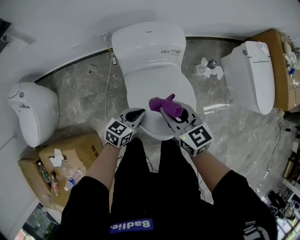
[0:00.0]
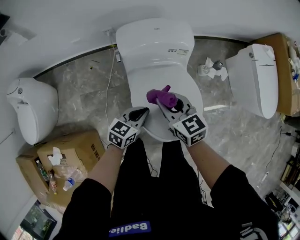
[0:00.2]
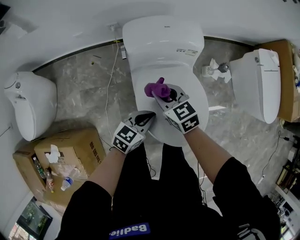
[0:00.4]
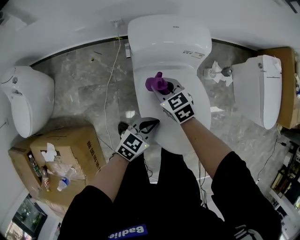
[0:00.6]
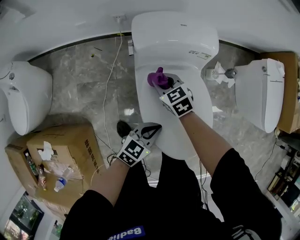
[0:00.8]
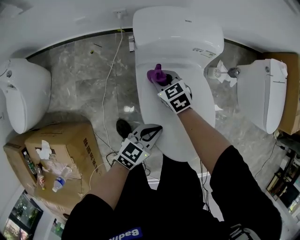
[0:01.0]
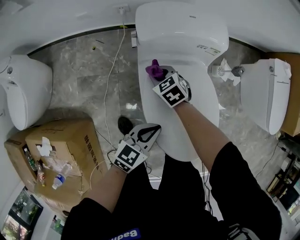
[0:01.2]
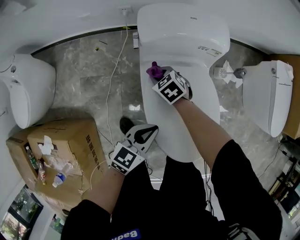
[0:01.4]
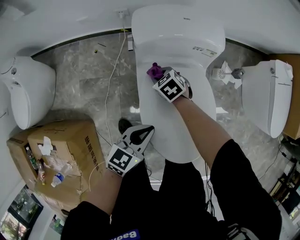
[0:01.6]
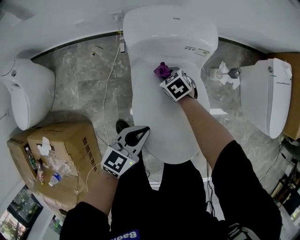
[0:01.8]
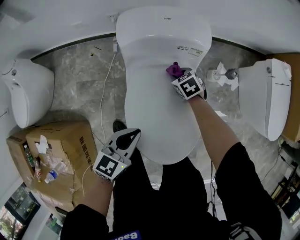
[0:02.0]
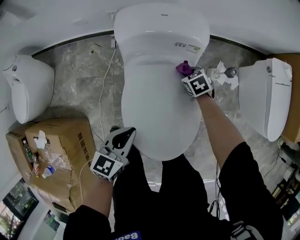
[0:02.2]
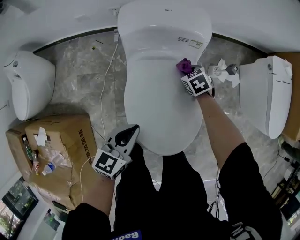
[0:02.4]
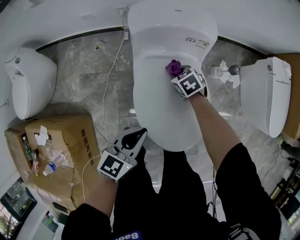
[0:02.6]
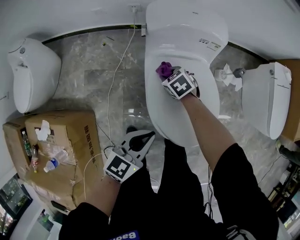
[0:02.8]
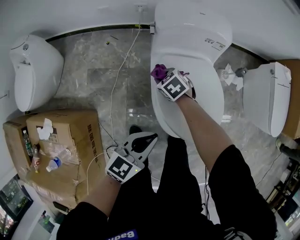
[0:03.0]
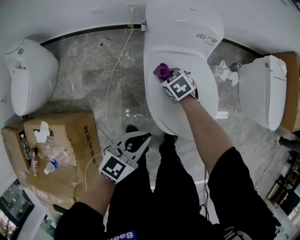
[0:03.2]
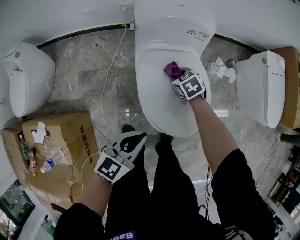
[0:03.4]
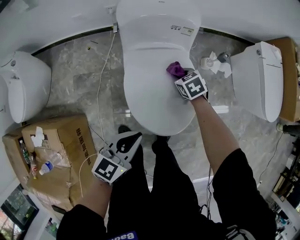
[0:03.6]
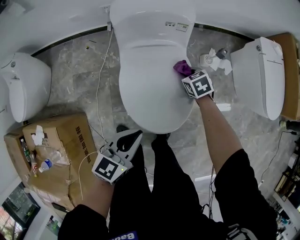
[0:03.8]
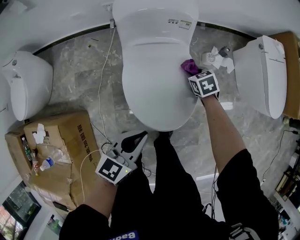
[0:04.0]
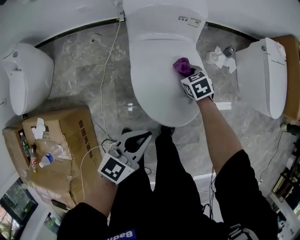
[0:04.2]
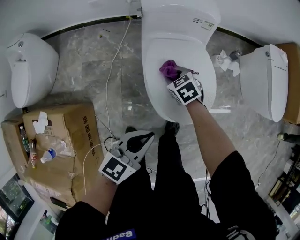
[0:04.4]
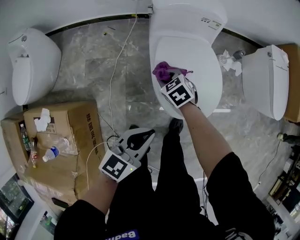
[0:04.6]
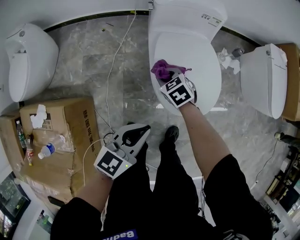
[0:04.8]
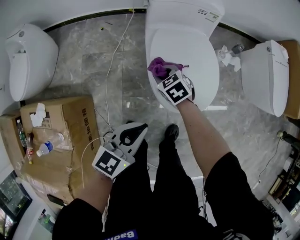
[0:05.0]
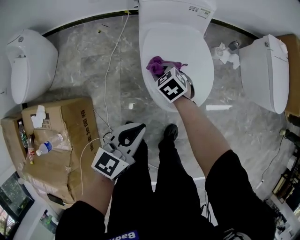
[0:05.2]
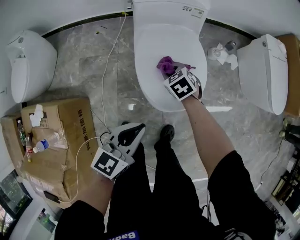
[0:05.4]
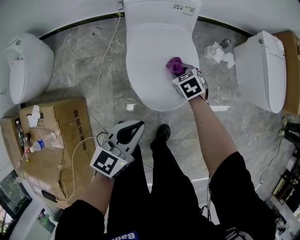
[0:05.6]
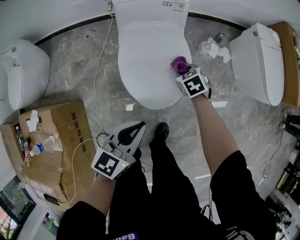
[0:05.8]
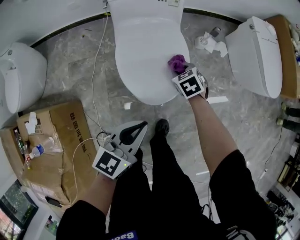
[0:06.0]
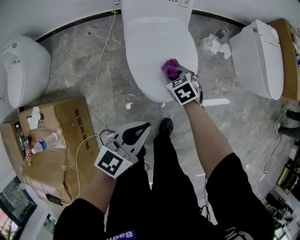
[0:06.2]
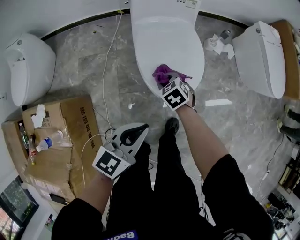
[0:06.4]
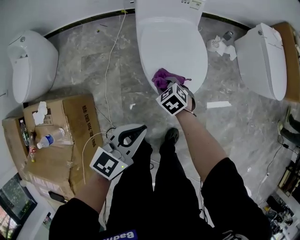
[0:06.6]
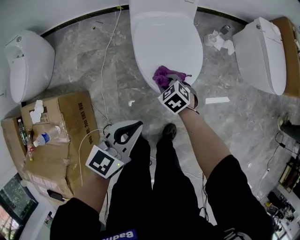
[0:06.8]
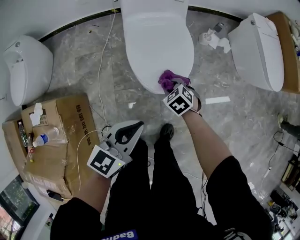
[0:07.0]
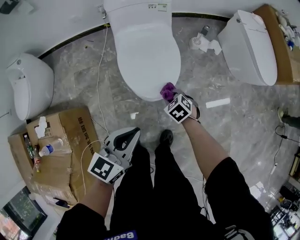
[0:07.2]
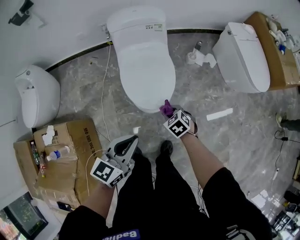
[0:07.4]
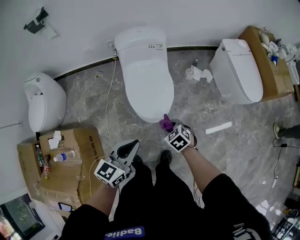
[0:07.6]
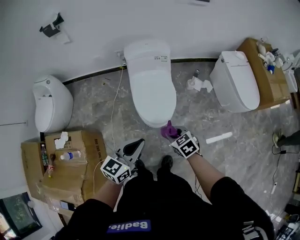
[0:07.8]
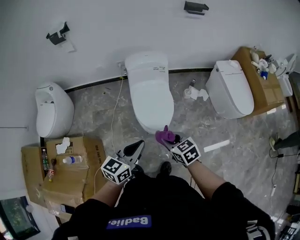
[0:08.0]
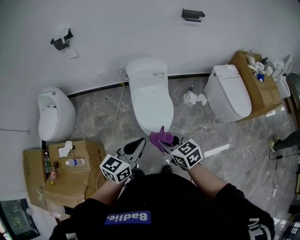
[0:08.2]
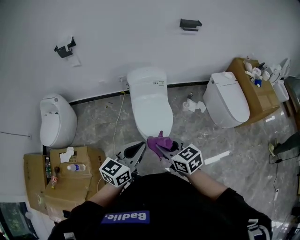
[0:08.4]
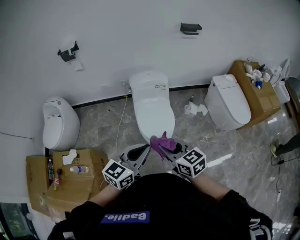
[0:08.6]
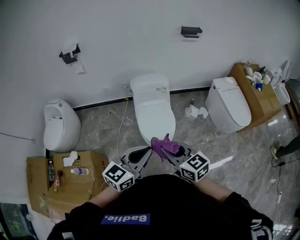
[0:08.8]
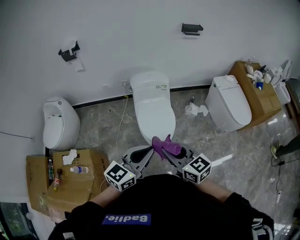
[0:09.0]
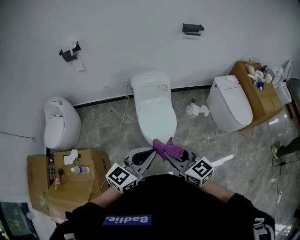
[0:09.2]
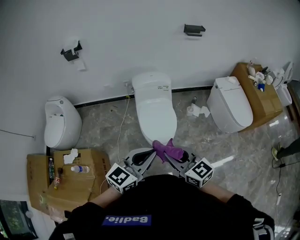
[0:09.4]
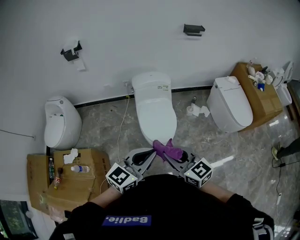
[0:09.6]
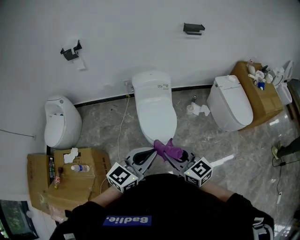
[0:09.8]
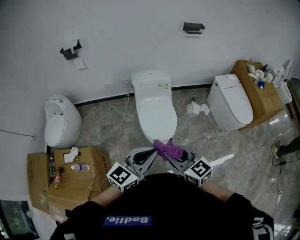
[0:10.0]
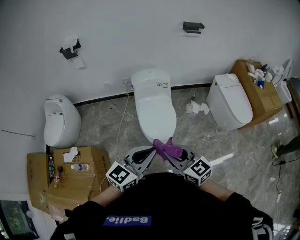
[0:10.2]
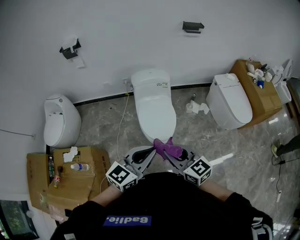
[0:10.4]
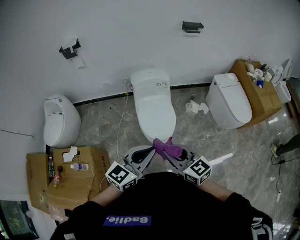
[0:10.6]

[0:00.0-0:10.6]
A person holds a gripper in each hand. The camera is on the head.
0:00.0 to 0:01.6: The right gripper goes approximately 35 cm downward, to the left and forward, and tilts its fingers some 30 degrees downward.
0:01.6 to 0:03.0: The right gripper travels backward by roughly 10 cm, and goes to the right and returns, some 20 cm each way, while the left gripper travels backward and upward by some 10 cm.
0:03.0 to 0:04.6: The grippers both shift backward by roughly 10 cm. The right gripper goes to the right and returns, approximately 30 cm each way. Meanwhile the left gripper travels to the right and back again, roughly 10 cm each way.
0:04.6 to 0:06.0: The right gripper moves to the right, roughly 25 cm. The left gripper is displaced to the right by some 15 cm.
0:06.0 to 0:07.6: The right gripper shifts roughly 25 cm backward and upward; the left gripper goes some 15 cm upward and backward.
0:07.6 to 0:09.0: The left gripper shifts about 20 cm upward, while the right gripper goes approximately 35 cm upward, and tilts its fingers some 50 degrees upward.
0:09.0 to 0:10.6: There are only small adjustments of the grippers.

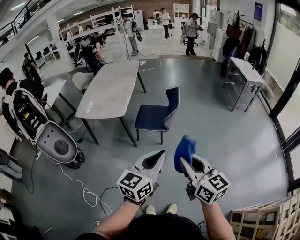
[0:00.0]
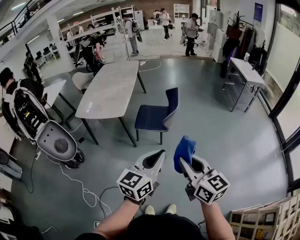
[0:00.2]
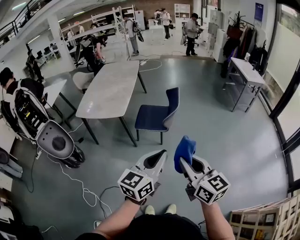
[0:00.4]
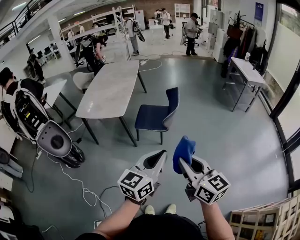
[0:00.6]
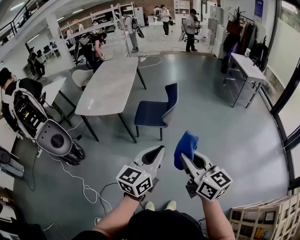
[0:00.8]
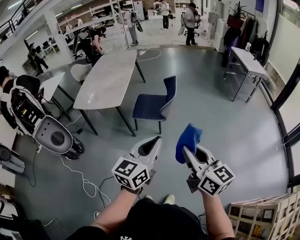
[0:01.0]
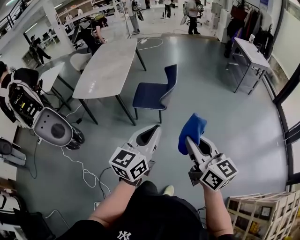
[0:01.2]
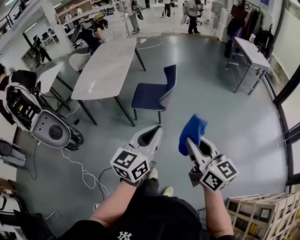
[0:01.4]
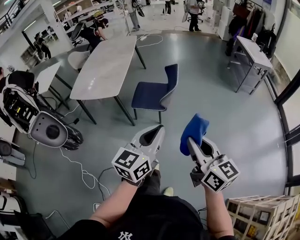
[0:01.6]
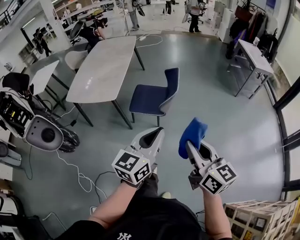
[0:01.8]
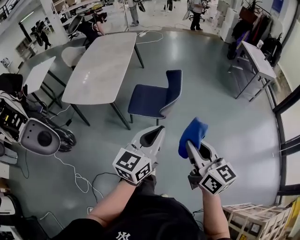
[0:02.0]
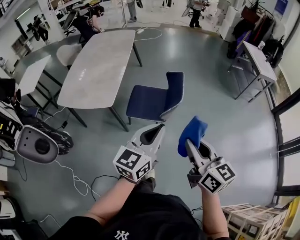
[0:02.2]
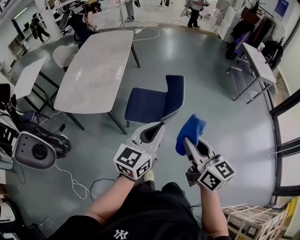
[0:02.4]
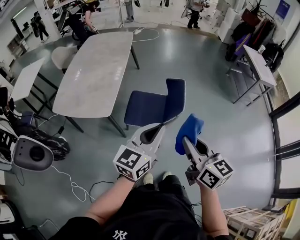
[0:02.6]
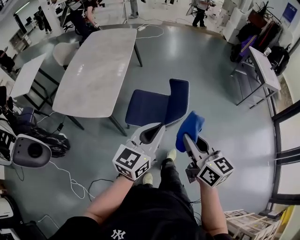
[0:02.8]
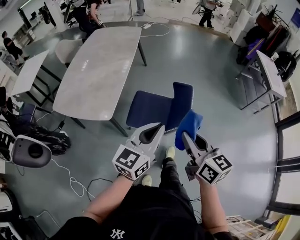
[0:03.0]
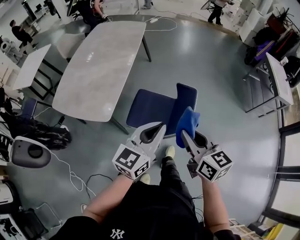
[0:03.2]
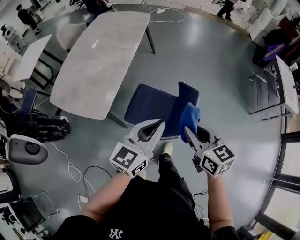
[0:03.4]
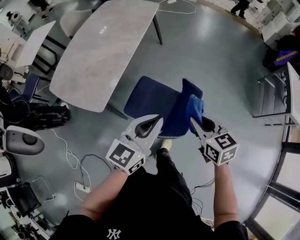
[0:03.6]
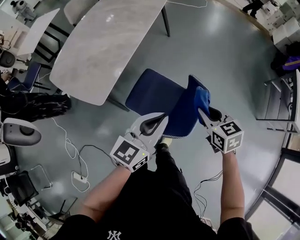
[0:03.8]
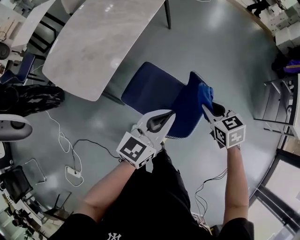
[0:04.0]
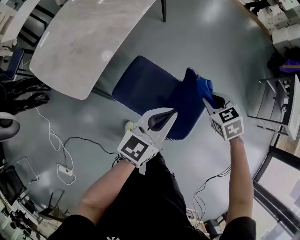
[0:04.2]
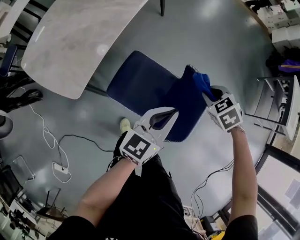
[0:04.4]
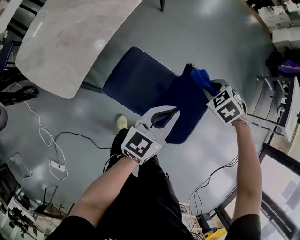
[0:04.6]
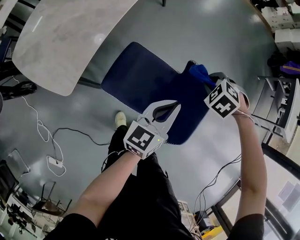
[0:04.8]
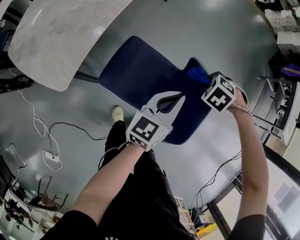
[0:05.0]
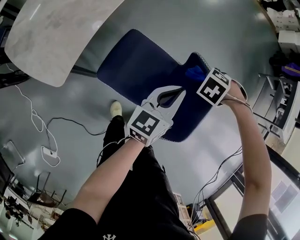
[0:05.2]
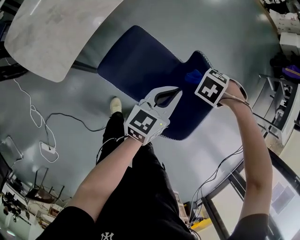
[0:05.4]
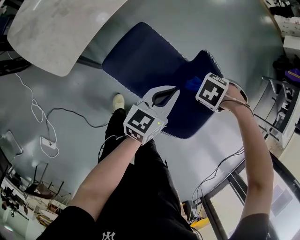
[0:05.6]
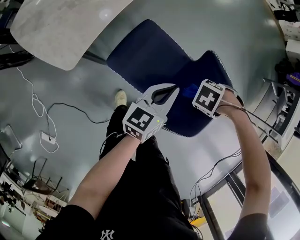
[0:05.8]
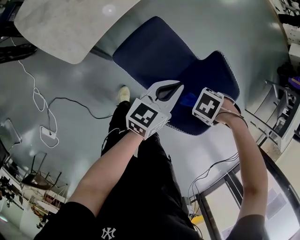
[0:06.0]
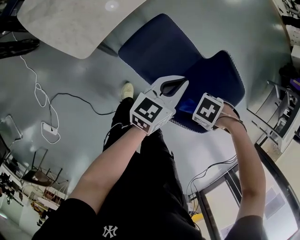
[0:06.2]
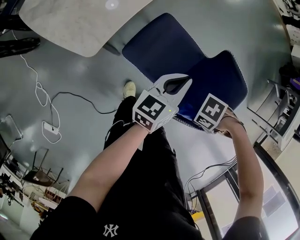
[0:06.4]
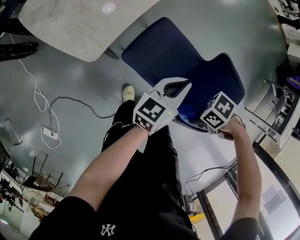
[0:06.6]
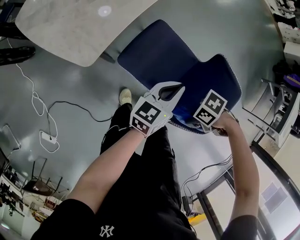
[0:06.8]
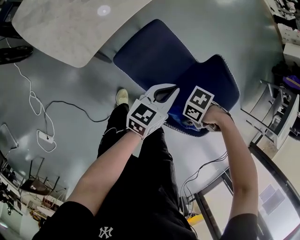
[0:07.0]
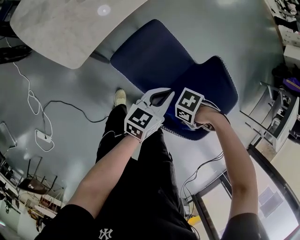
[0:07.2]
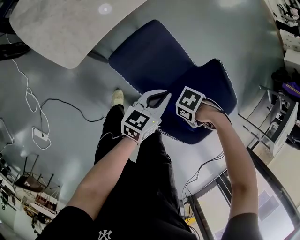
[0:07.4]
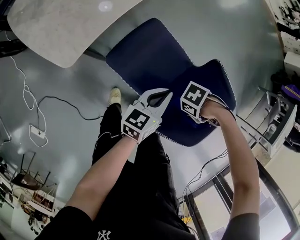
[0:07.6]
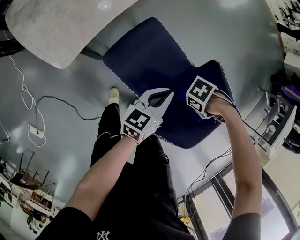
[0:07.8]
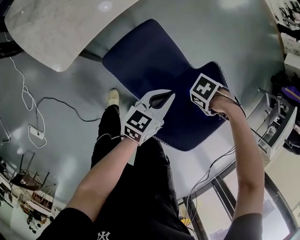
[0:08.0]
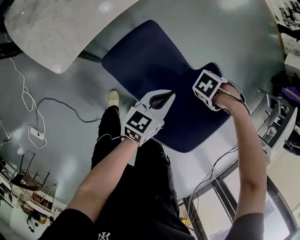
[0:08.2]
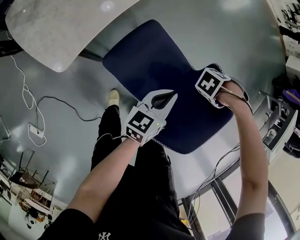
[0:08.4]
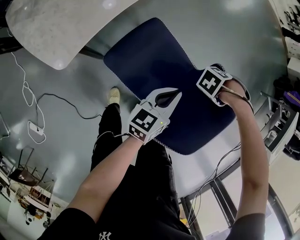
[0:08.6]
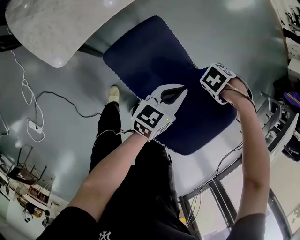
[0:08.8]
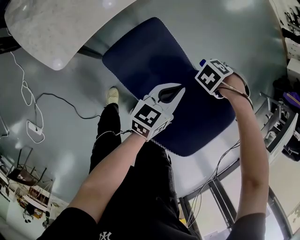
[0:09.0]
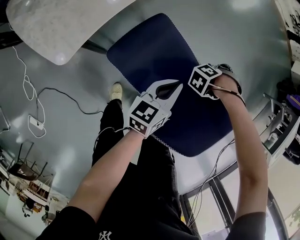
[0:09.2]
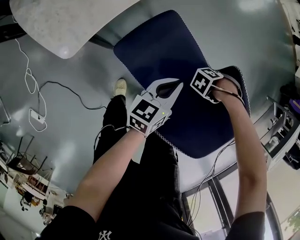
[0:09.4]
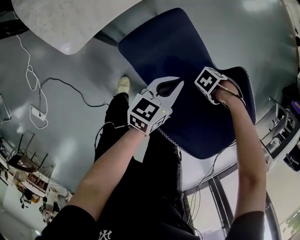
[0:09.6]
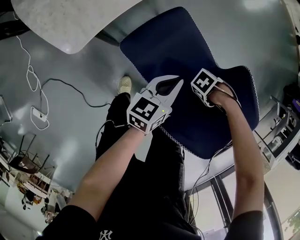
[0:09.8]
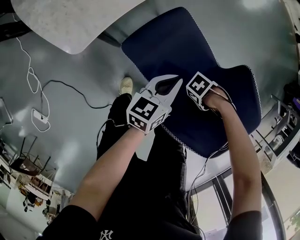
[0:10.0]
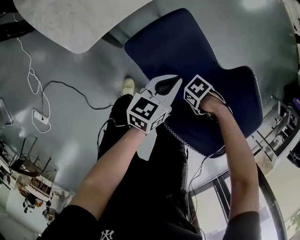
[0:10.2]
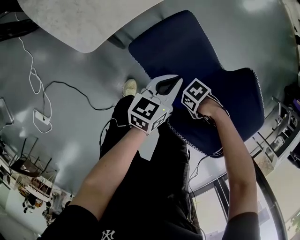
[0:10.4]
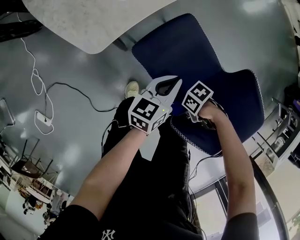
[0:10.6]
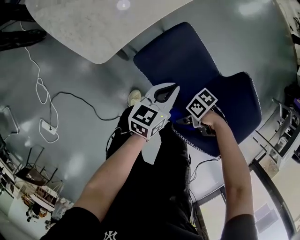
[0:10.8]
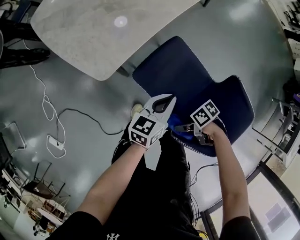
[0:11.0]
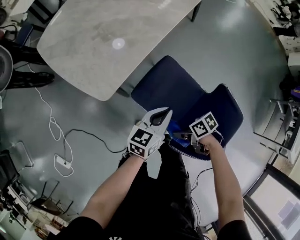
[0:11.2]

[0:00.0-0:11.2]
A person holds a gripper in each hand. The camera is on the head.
0:00.0 to 0:01.6: The left gripper ends up approximately 10 cm from where it was.
0:01.6 to 0:03.2: The left gripper shifts by approximately 50 cm.
0:03.2 to 0:04.8: The left gripper travels downward by about 25 cm.
0:04.8 to 0:06.4: The left gripper ends up approximately 15 cm from where it was.
0:06.4 to 0:08.0: The left gripper moves downward, some 10 cm.
0:08.0 to 0:09.6: The left gripper goes about 5 cm downward.
0:09.6 to 0:11.2: The left gripper is displaced upward by about 10 cm.

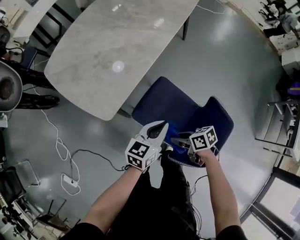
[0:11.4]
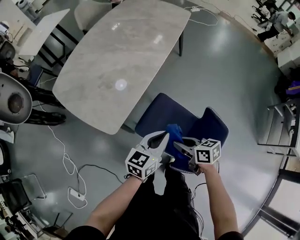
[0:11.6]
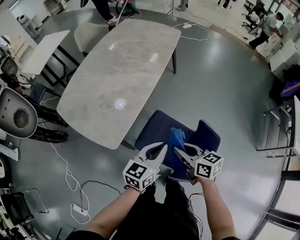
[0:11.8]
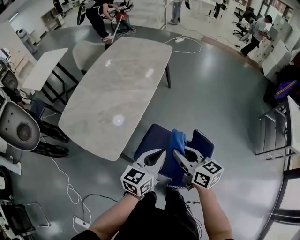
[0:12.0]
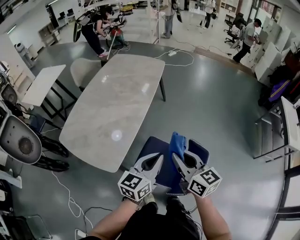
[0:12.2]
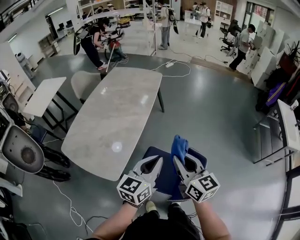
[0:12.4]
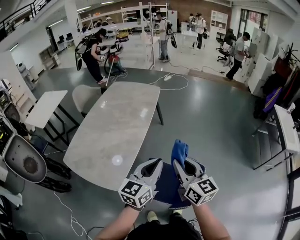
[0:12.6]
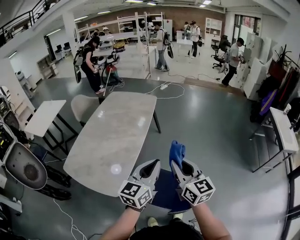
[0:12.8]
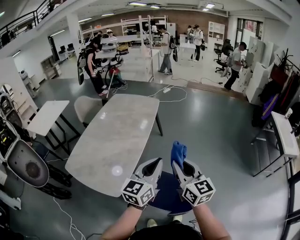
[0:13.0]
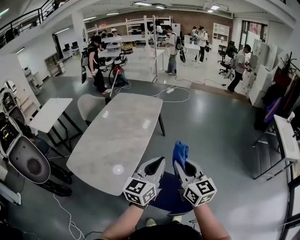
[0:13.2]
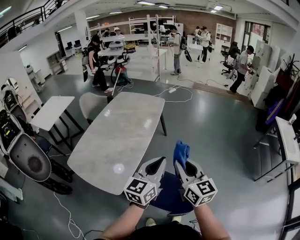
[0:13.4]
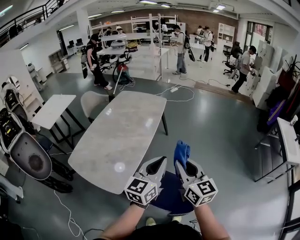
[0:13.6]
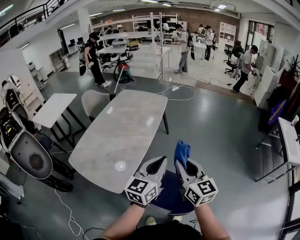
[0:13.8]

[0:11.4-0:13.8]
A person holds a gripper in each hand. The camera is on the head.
0:11.4 to 0:12.6: The left gripper goes some 35 cm upward, and swivels about 20 degrees.
0:12.6 to 0:13.8: The left gripper moves approximately 5 cm.
